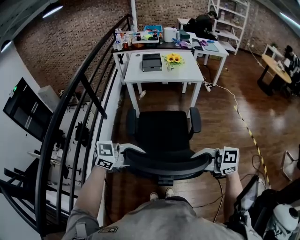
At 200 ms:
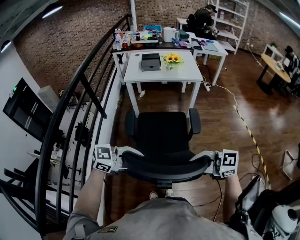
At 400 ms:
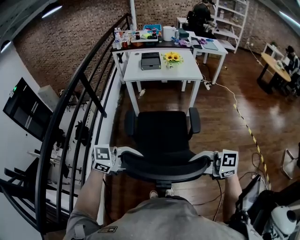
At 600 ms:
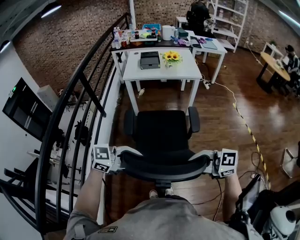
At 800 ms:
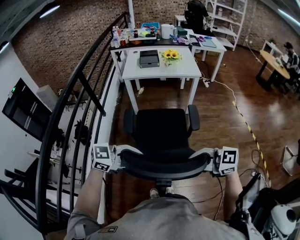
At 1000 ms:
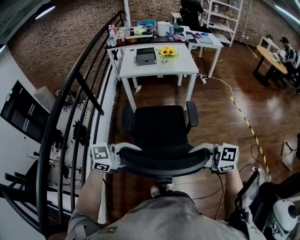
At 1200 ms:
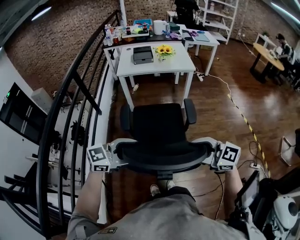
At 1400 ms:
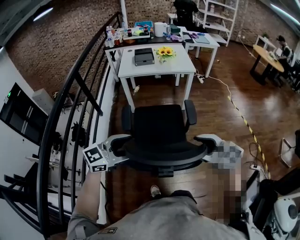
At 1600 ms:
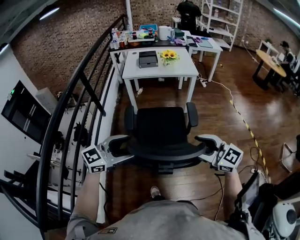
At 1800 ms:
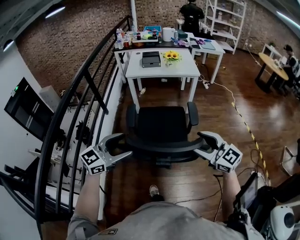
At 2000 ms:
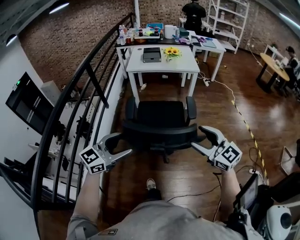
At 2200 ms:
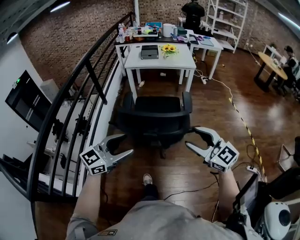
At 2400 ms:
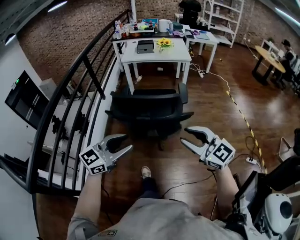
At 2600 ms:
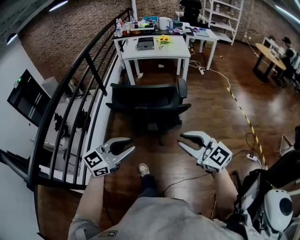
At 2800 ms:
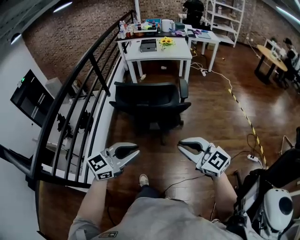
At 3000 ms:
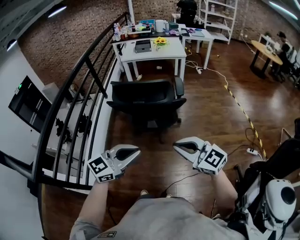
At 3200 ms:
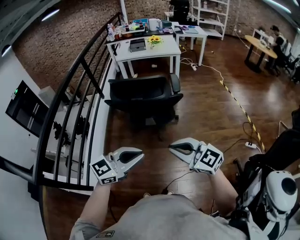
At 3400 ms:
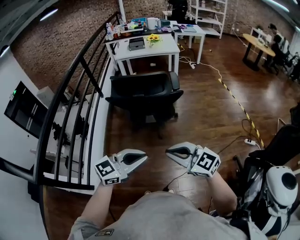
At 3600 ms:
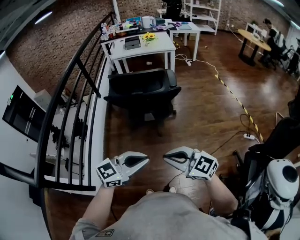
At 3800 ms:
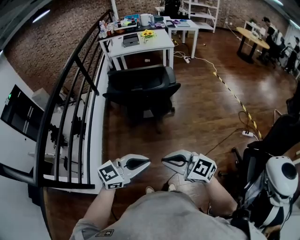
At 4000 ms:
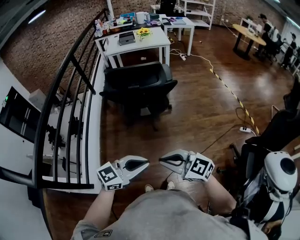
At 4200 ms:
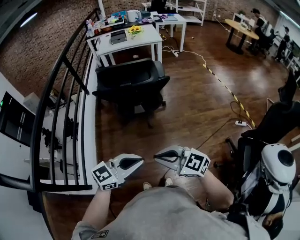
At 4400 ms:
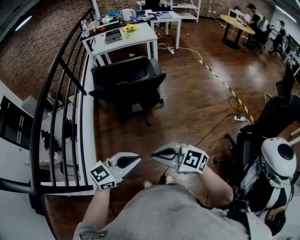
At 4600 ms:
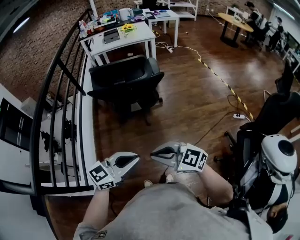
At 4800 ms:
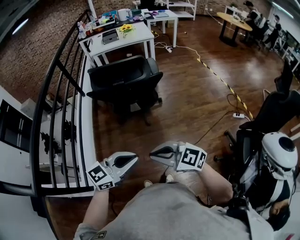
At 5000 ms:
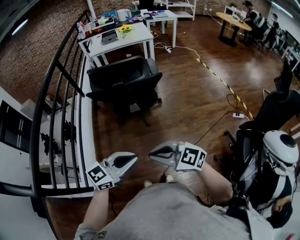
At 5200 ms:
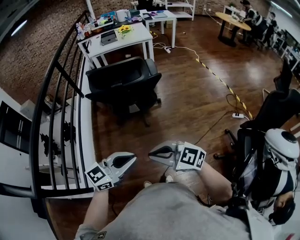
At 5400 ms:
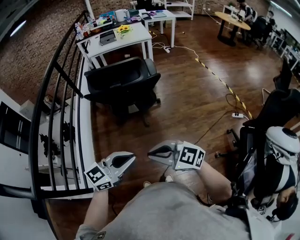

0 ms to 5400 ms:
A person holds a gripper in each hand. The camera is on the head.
0 ms to 1400 ms: The right gripper rotates approximately 20 degrees, and opens its fingers. Meanwhile the left gripper moves roughly 5 cm, rotates approximately 20 degrees, and opens.
1400 ms to 2800 ms: The right gripper changes place by approximately 30 cm, and closes up, while the left gripper changes place by about 35 cm, and closes its fingers.
2800 ms to 4000 ms: The right gripper changes place by roughly 20 cm. Meanwhile the left gripper moves some 15 cm.
4000 ms to 5400 ms: The grippers move only a little.

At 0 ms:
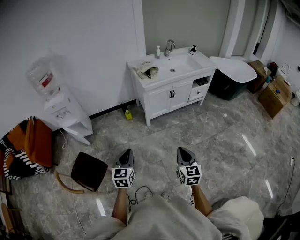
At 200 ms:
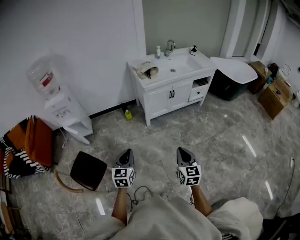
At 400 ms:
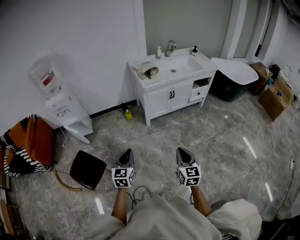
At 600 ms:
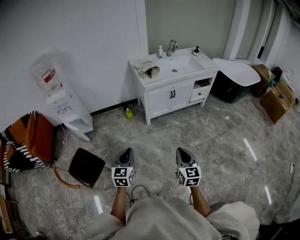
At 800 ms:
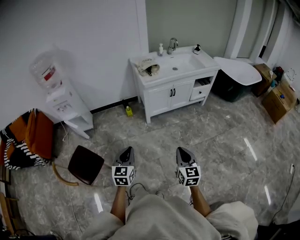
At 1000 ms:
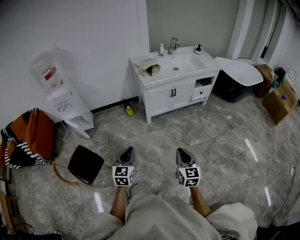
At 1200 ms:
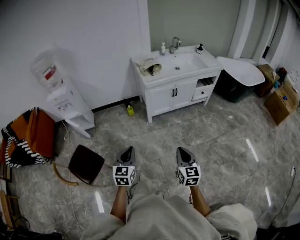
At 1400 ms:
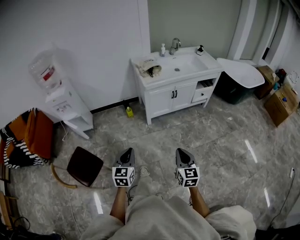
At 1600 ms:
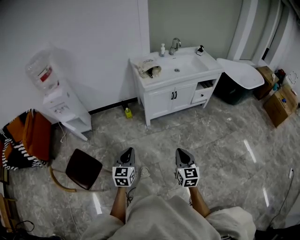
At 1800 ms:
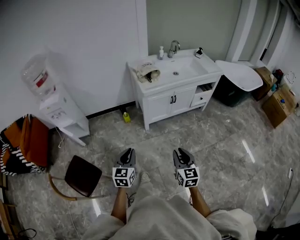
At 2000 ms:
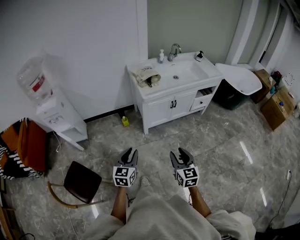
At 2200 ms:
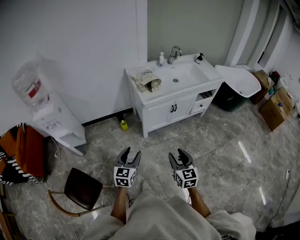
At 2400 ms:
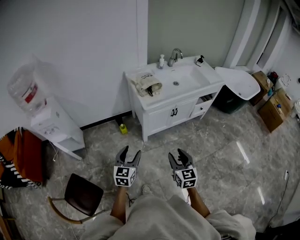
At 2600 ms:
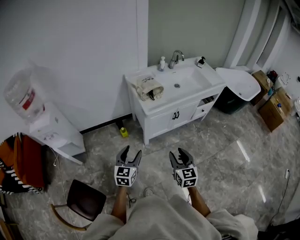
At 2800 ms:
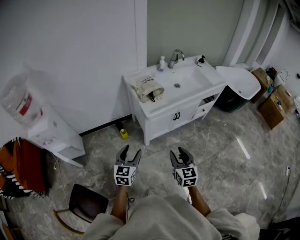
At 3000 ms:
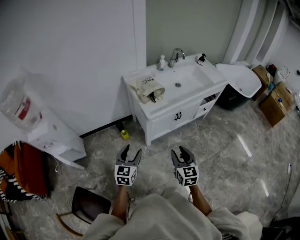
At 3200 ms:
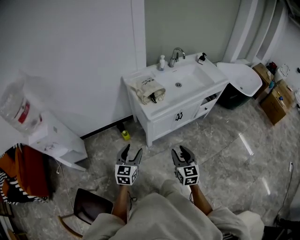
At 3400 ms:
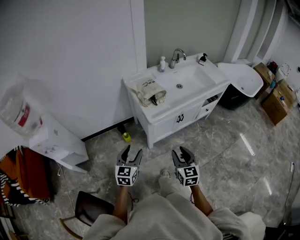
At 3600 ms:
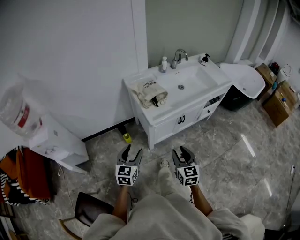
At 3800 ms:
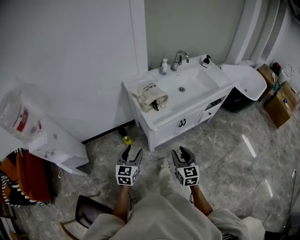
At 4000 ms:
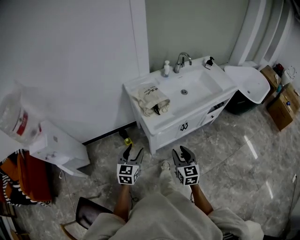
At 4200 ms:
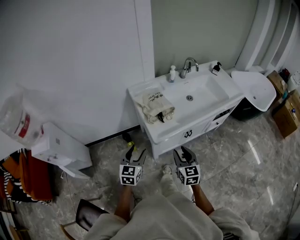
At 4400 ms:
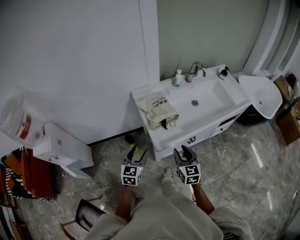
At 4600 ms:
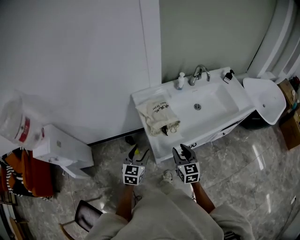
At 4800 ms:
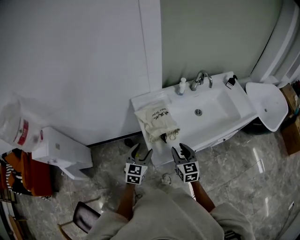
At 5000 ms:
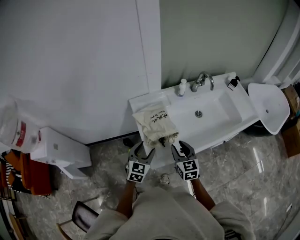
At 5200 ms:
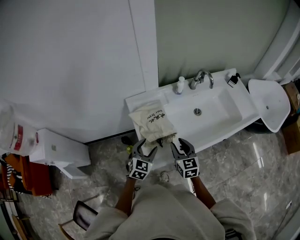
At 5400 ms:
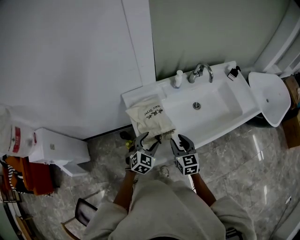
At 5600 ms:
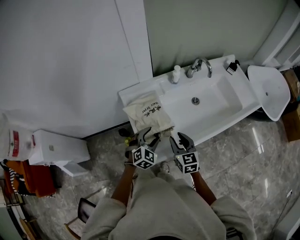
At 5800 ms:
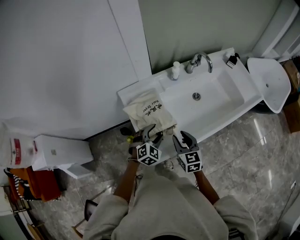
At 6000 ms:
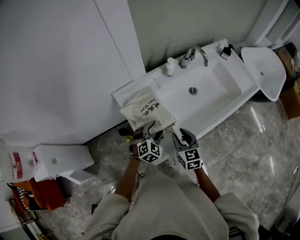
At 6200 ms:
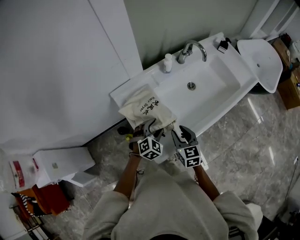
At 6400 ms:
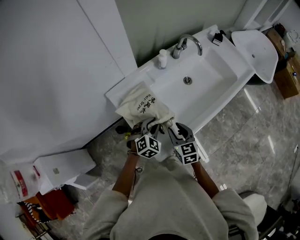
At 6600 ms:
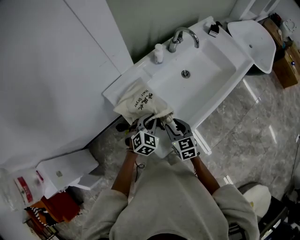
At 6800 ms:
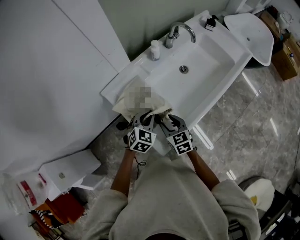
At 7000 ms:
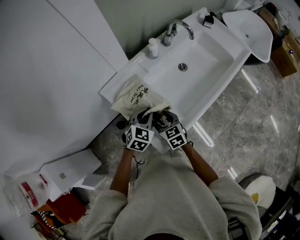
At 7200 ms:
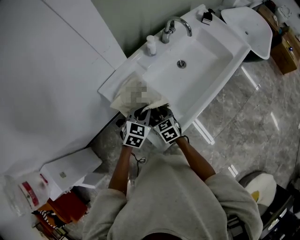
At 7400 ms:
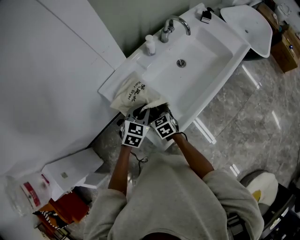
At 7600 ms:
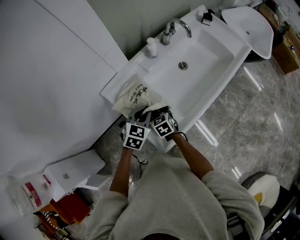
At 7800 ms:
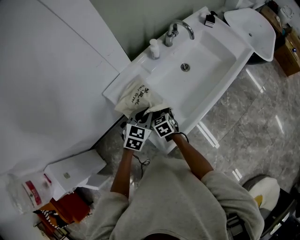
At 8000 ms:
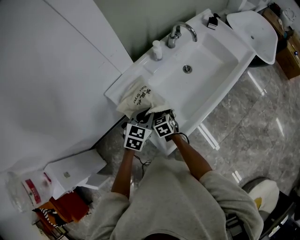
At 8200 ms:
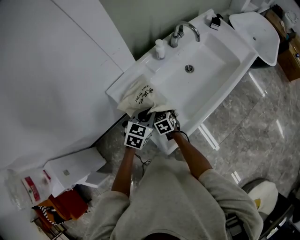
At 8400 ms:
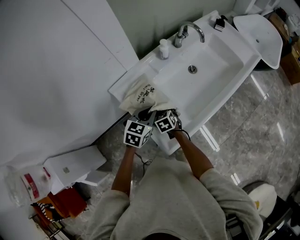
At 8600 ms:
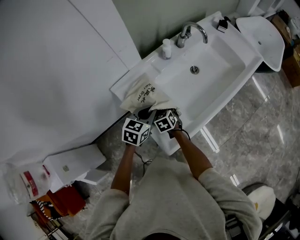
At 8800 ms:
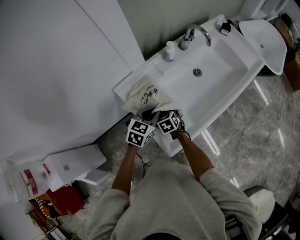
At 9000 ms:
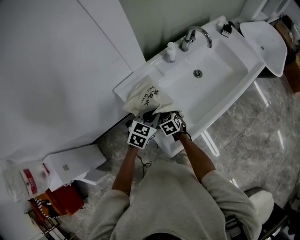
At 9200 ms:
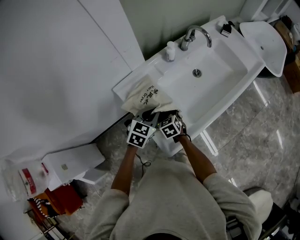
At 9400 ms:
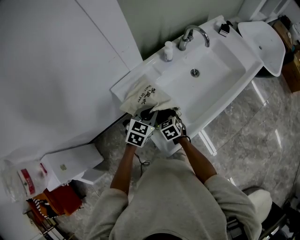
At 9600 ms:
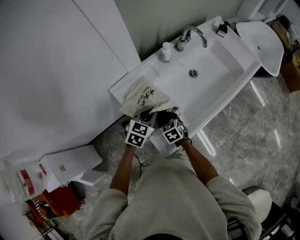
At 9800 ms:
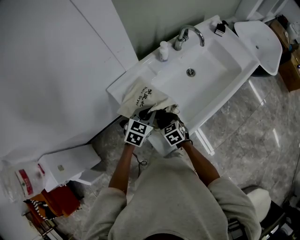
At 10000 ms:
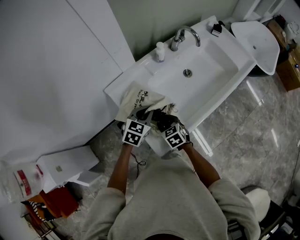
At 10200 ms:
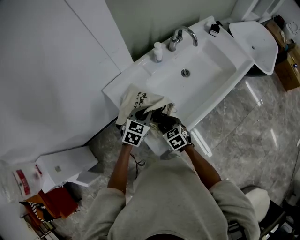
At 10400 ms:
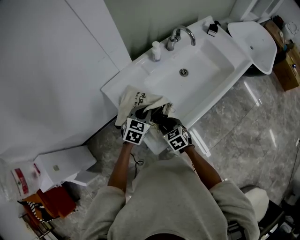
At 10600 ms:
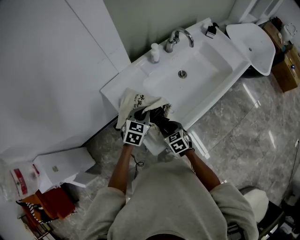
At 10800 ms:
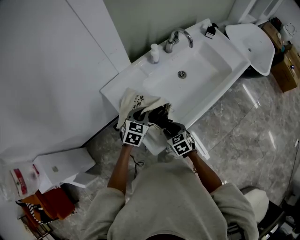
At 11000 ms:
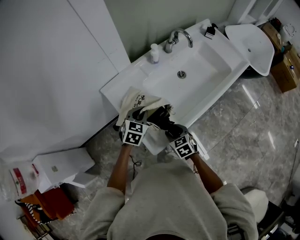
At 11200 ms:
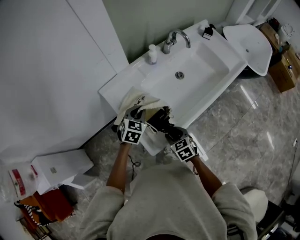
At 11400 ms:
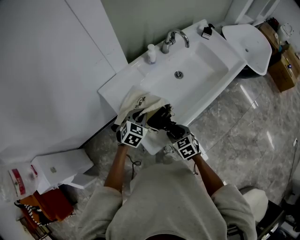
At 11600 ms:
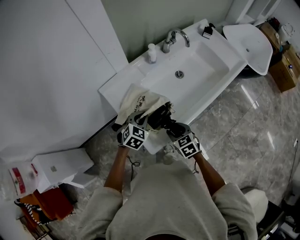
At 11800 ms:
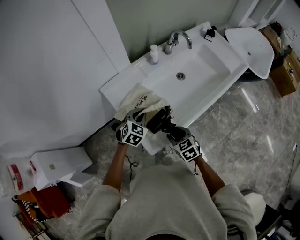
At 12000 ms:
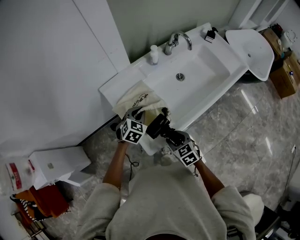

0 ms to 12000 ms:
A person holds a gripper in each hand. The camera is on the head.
0 ms to 1600 ms: The right gripper moves forward, roughly 5 cm. The left gripper heads forward and to the right, covering approximately 10 cm.
1600 ms to 3000 ms: The grippers both shift forward by about 35 cm. The right gripper opens up. Meanwhile the left gripper opens.
3000 ms to 4400 ms: The grippers both shift forward by about 25 cm.
4400 ms to 6000 ms: The right gripper travels forward by about 20 cm, while the left gripper is displaced forward, to the right and downward by approximately 30 cm, and turns by roughly 50 degrees.
6000 ms to 7600 ms: The left gripper changes place by roughly 5 cm, and closes up. Meanwhile the right gripper shifts some 15 cm to the left and downward, and opens its fingers.
7600 ms to 9000 ms: The right gripper closes up.
9000 ms to 10400 ms: The right gripper moves backward and to the right, approximately 10 cm.
10400 ms to 12000 ms: The right gripper travels backward and to the right by roughly 10 cm.

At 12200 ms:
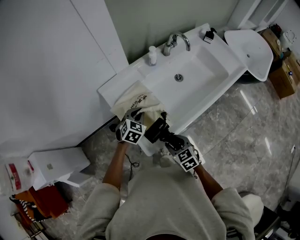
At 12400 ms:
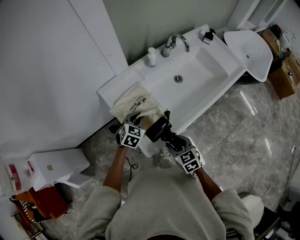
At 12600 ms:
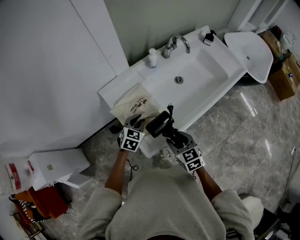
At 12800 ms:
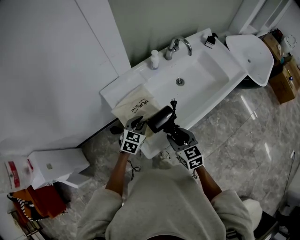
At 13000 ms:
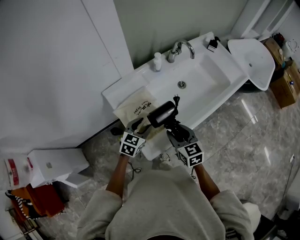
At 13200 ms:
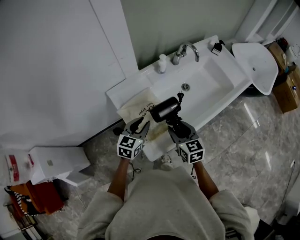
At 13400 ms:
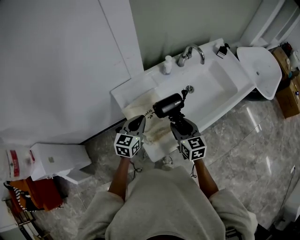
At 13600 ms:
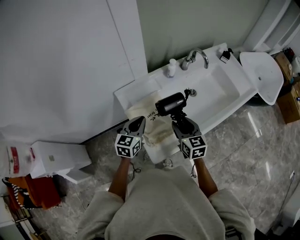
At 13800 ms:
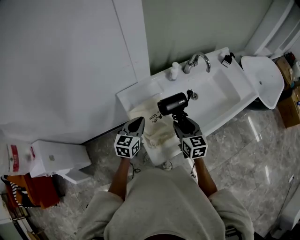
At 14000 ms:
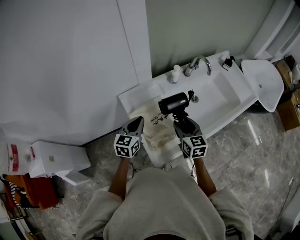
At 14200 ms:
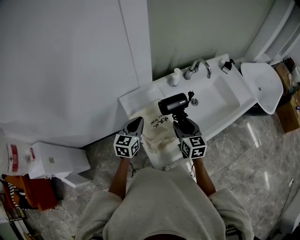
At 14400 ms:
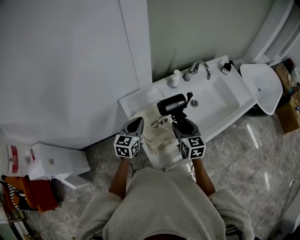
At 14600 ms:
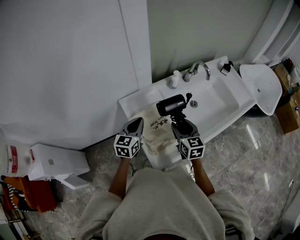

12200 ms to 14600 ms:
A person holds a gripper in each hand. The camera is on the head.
12200 ms to 13400 ms: The left gripper moves upward, approximately 10 cm, swivels about 30 degrees, and opens, then closes once more; the right gripper moves forward and upward, roughly 15 cm, and rotates roughly 20 degrees.
13400 ms to 14600 ms: The right gripper changes place by some 5 cm, while the left gripper changes place by about 5 cm.

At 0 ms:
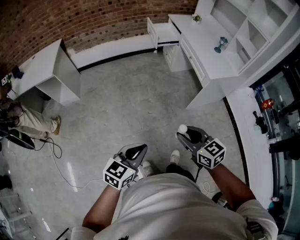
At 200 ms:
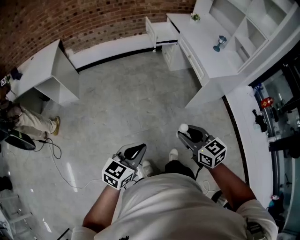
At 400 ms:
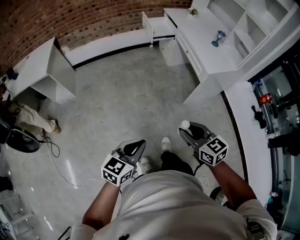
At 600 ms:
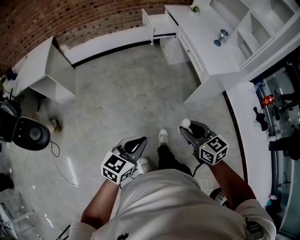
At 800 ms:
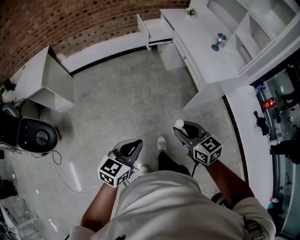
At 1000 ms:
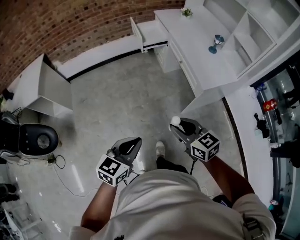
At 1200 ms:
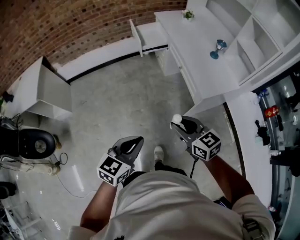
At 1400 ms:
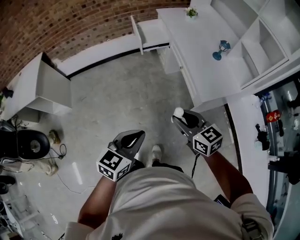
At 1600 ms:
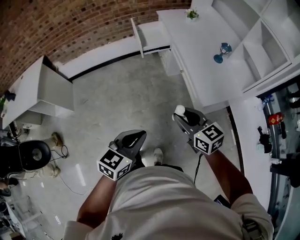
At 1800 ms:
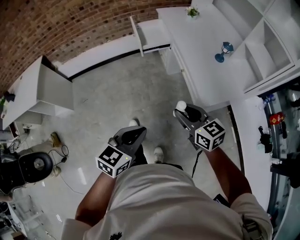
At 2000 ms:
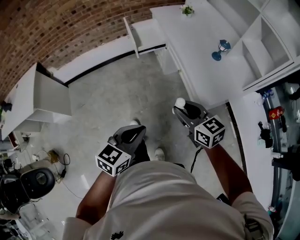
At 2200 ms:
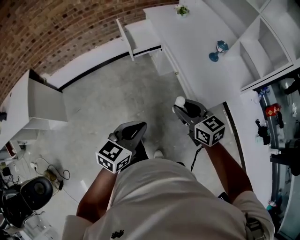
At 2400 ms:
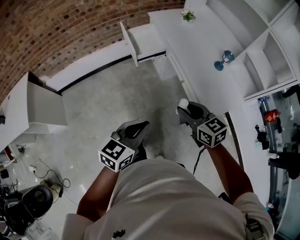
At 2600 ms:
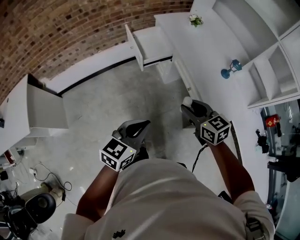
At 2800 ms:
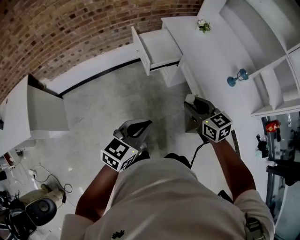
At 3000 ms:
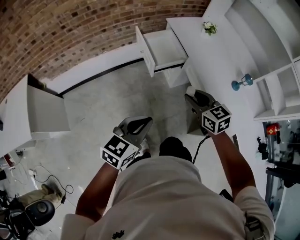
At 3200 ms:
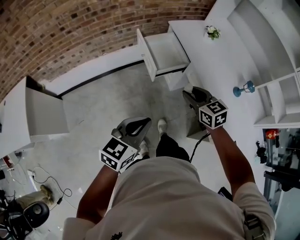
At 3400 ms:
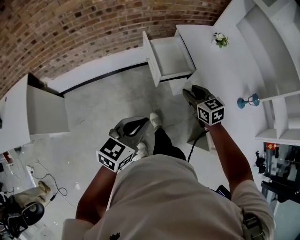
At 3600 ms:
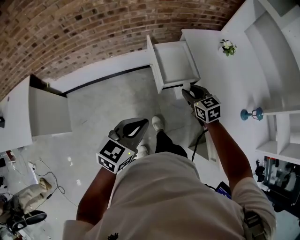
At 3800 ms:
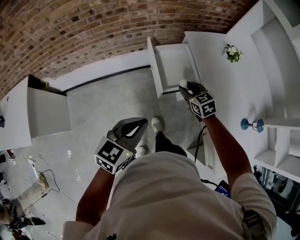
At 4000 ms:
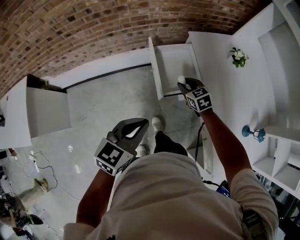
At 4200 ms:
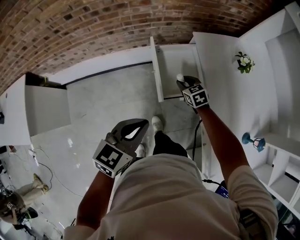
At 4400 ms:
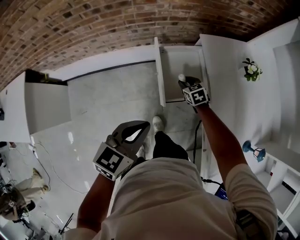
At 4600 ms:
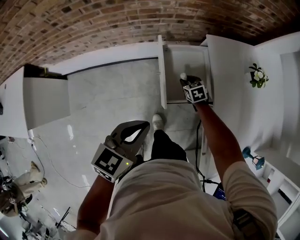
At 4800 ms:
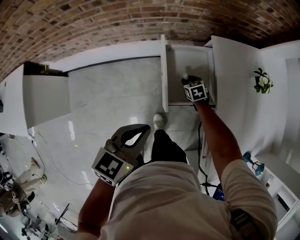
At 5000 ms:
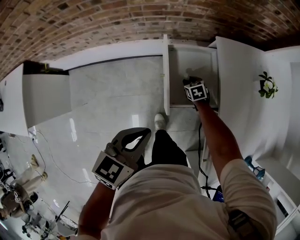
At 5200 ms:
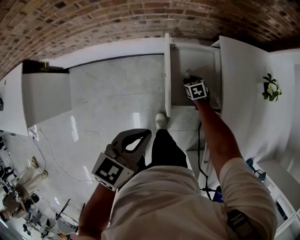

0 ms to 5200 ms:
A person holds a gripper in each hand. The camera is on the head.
0 ms to 1800 ms: Both grippers are carried forward and to the right, roughly 40 cm.
1800 ms to 3400 ms: The two grippers travel together, forward and to the left, approximately 40 cm.
3400 ms to 5200 ms: The left gripper goes some 30 cm forward, while the right gripper heads downward and forward, covering some 50 cm, and points its fingers approximately 30 degrees further downward.
